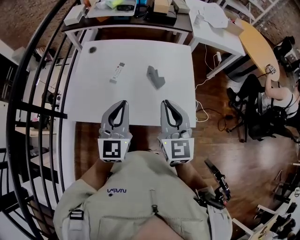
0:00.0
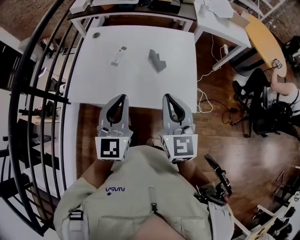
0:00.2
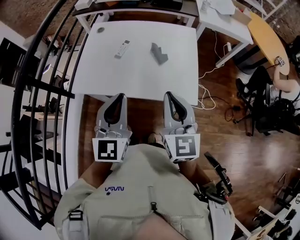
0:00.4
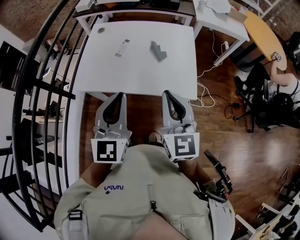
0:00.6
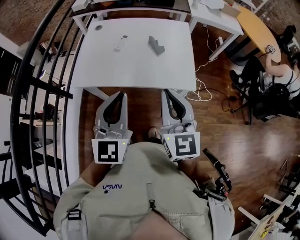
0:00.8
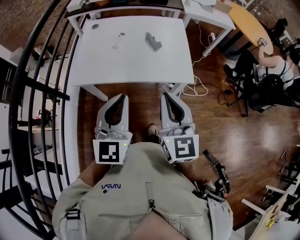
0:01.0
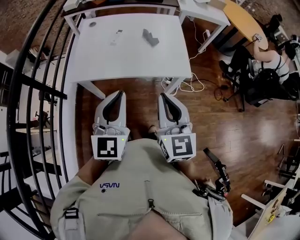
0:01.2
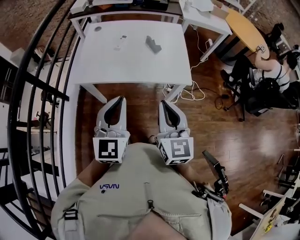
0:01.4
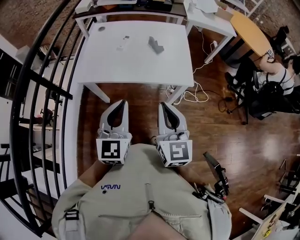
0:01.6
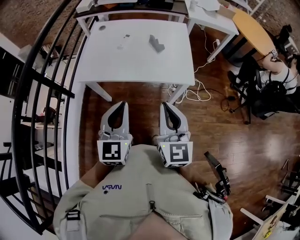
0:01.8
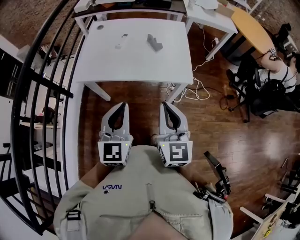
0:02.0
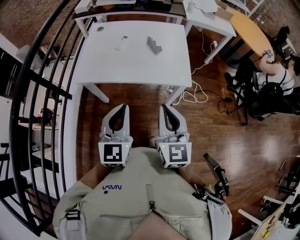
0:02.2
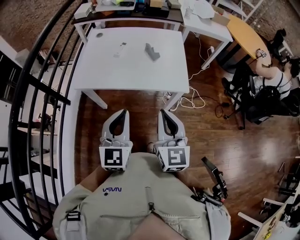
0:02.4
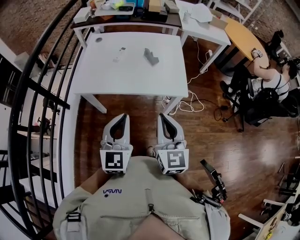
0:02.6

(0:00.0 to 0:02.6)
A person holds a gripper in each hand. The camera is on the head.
0:00.0 - 0:01.2: Both grippers move backward, approximately 25 cm.
0:01.2 - 0:02.6: The left gripper ends up some 5 cm from where it was.

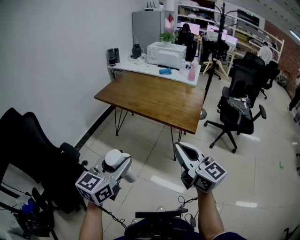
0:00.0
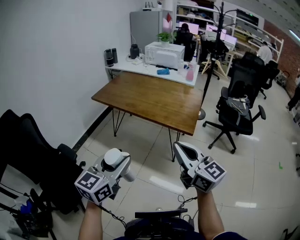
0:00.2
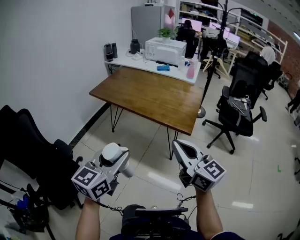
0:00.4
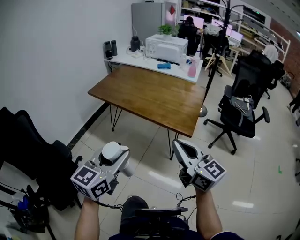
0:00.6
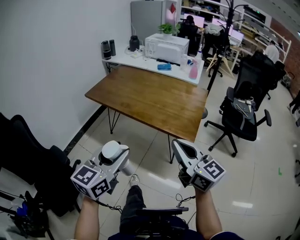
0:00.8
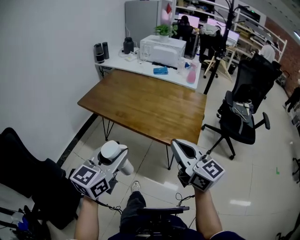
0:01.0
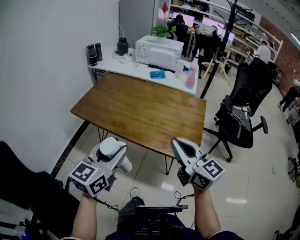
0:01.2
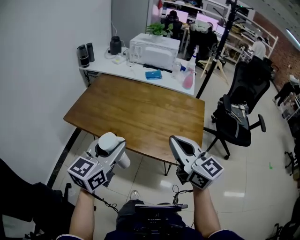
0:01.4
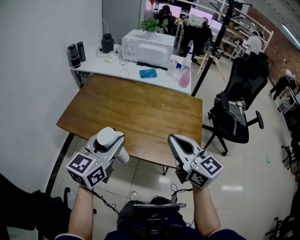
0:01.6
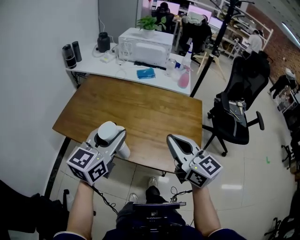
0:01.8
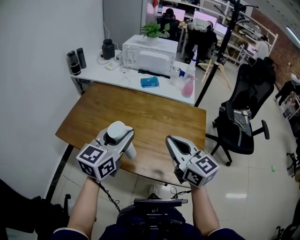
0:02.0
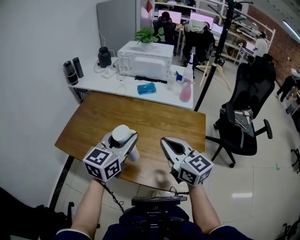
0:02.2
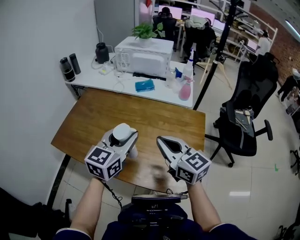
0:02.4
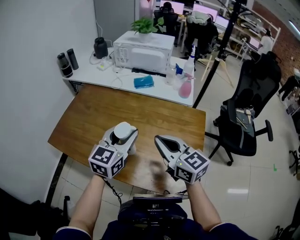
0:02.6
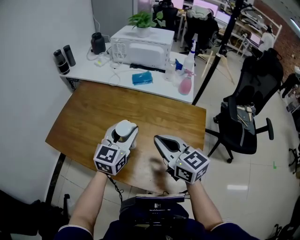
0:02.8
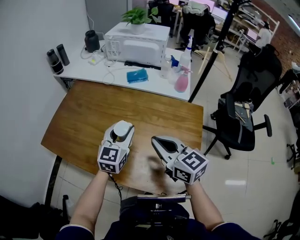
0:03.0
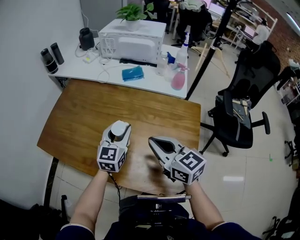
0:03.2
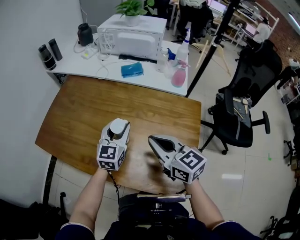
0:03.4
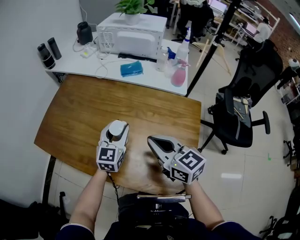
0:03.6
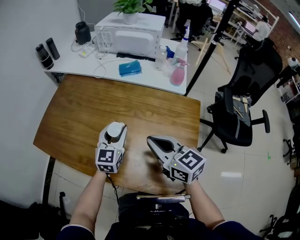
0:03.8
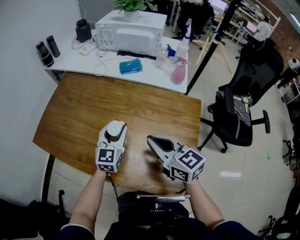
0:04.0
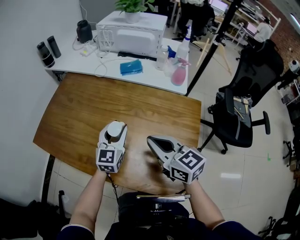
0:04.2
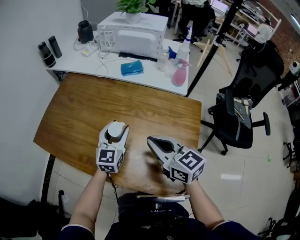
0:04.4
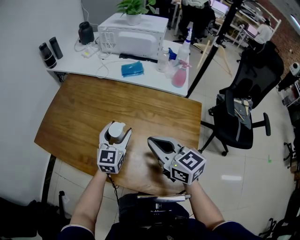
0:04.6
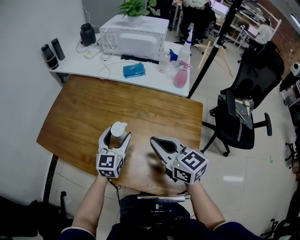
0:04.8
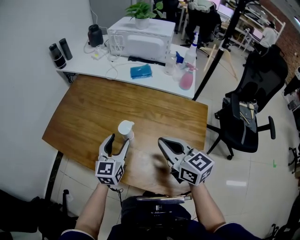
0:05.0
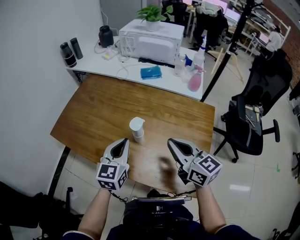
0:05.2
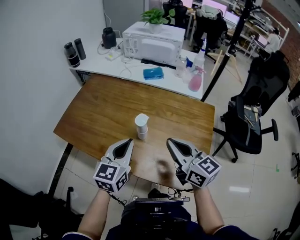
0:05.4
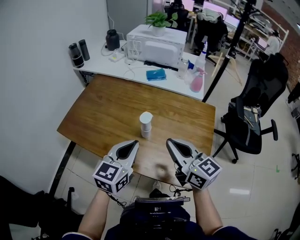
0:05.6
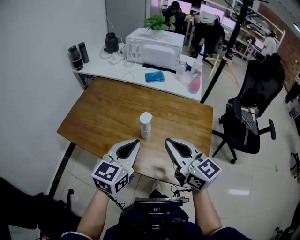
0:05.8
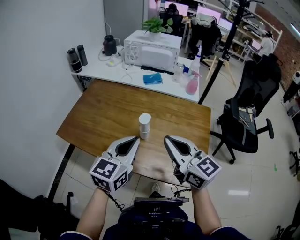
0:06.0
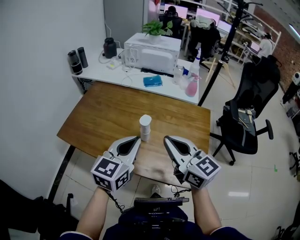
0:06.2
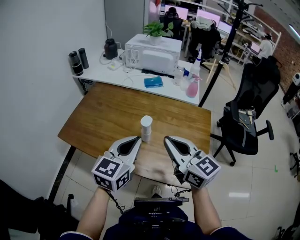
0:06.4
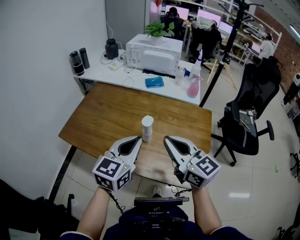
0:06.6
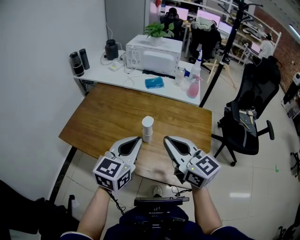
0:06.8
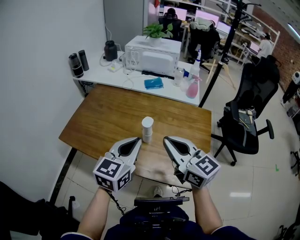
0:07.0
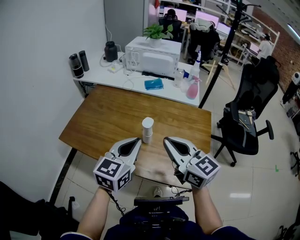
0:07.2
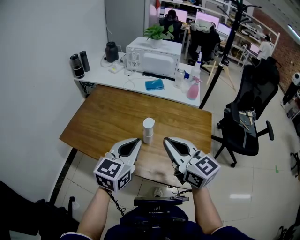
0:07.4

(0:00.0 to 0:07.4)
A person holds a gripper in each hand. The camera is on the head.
0:00.0 - 0:01.4: Both grippers move forward, some 35 cm.
0:01.4 - 0:03.0: The left gripper travels forward, to the right and downward by about 35 cm; the right gripper heads forward and downward, covering approximately 25 cm.
0:03.0 - 0:04.4: The left gripper travels downward by approximately 5 cm.
0:04.4 - 0:06.0: The left gripper moves backward, upward and to the left, roughly 25 cm, and closes; the right gripper shifts some 15 cm upward, backward and to the left.
0:06.0 - 0:07.4: The grippers stay close to where they were, moving slightly.

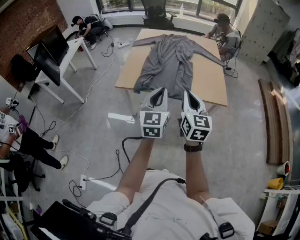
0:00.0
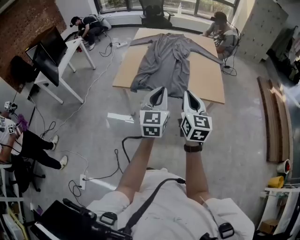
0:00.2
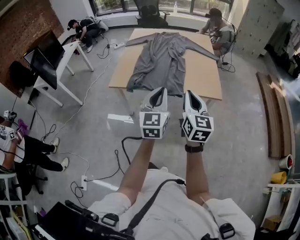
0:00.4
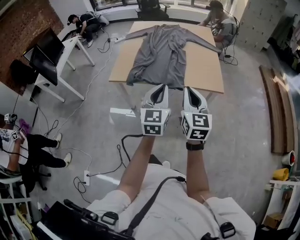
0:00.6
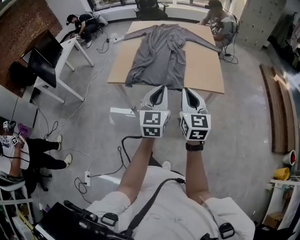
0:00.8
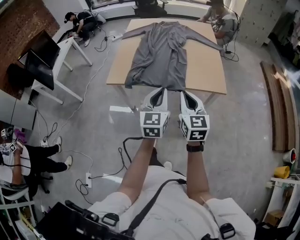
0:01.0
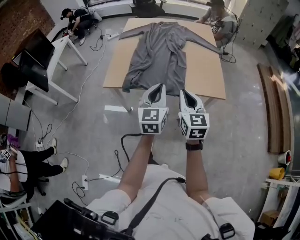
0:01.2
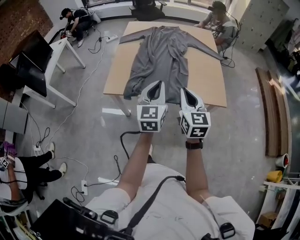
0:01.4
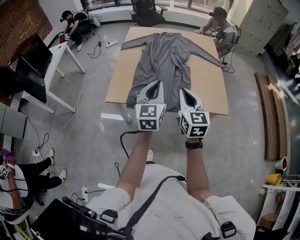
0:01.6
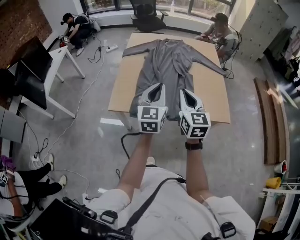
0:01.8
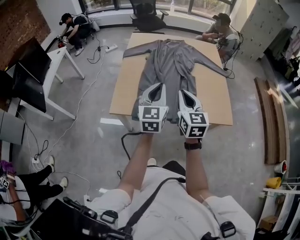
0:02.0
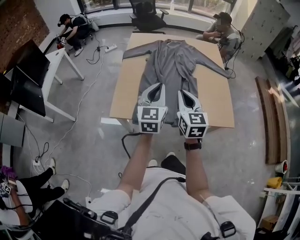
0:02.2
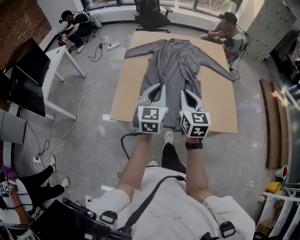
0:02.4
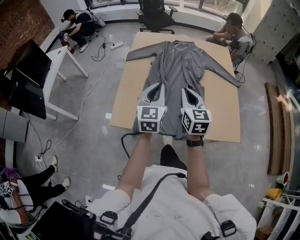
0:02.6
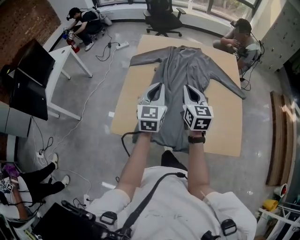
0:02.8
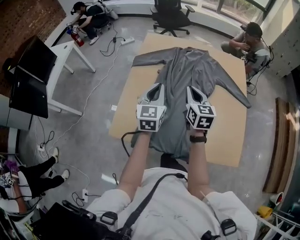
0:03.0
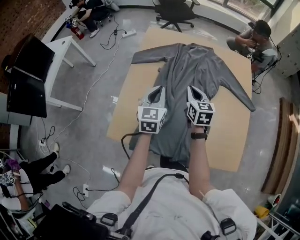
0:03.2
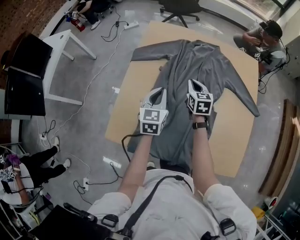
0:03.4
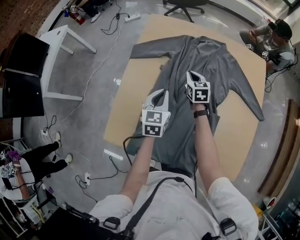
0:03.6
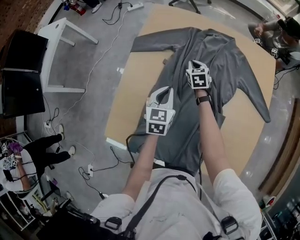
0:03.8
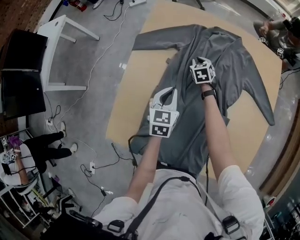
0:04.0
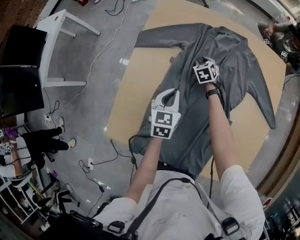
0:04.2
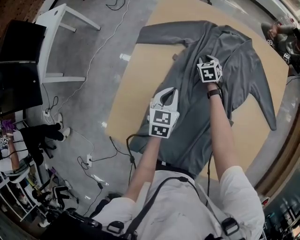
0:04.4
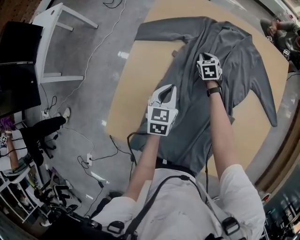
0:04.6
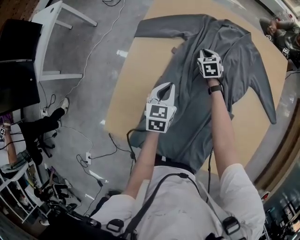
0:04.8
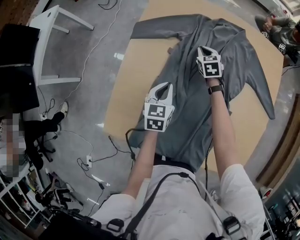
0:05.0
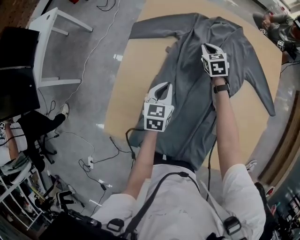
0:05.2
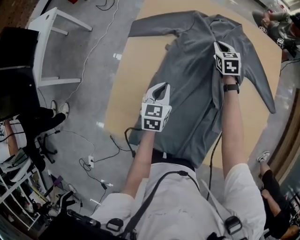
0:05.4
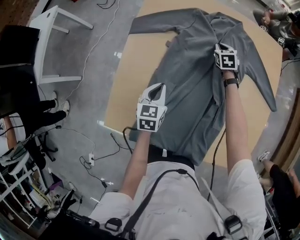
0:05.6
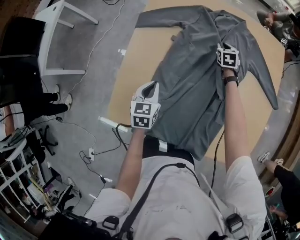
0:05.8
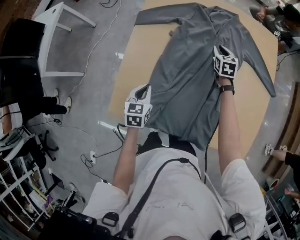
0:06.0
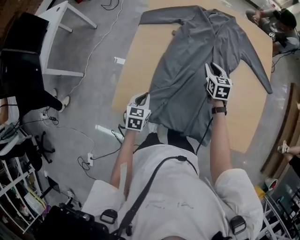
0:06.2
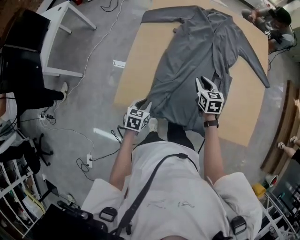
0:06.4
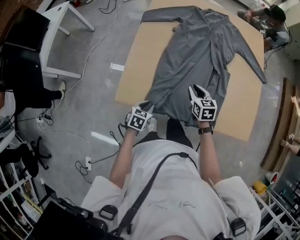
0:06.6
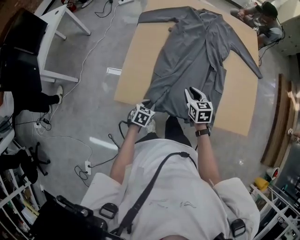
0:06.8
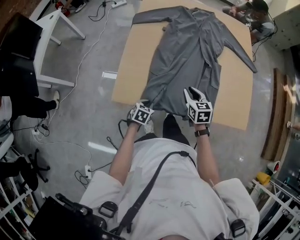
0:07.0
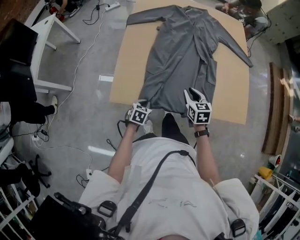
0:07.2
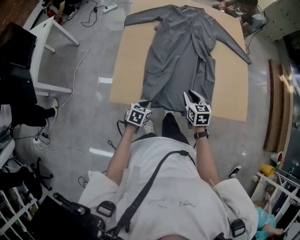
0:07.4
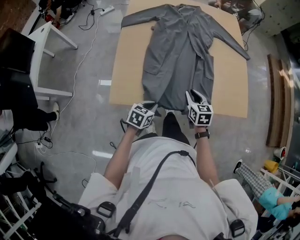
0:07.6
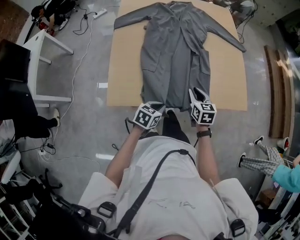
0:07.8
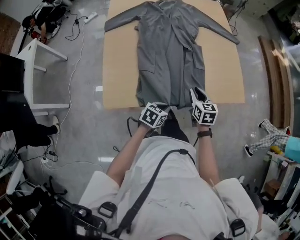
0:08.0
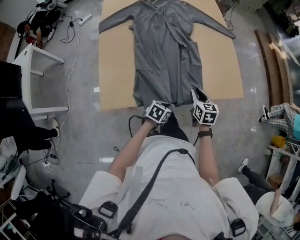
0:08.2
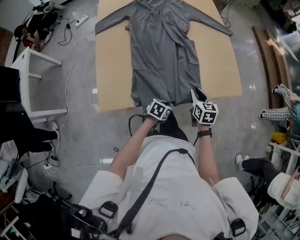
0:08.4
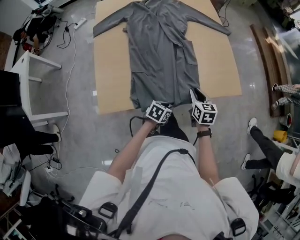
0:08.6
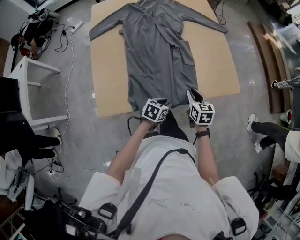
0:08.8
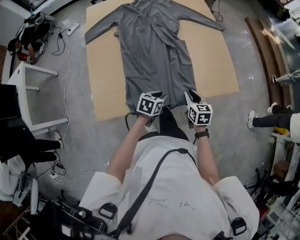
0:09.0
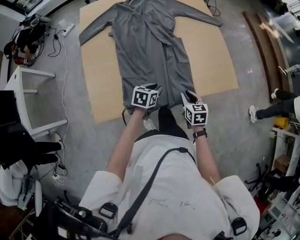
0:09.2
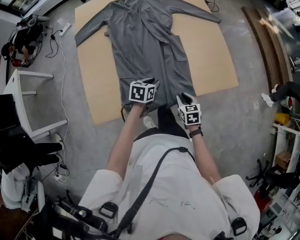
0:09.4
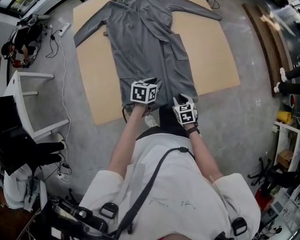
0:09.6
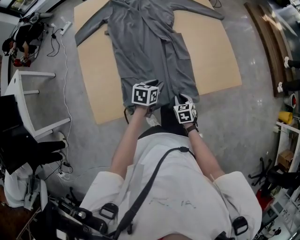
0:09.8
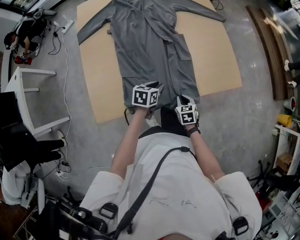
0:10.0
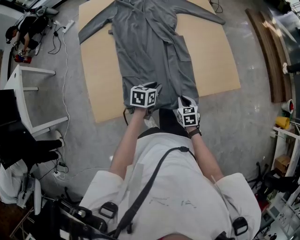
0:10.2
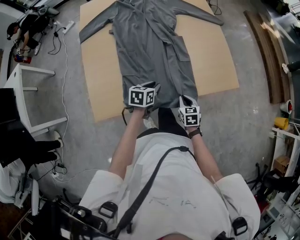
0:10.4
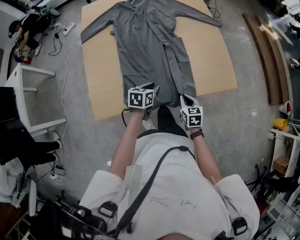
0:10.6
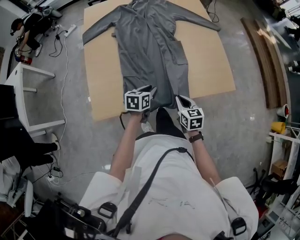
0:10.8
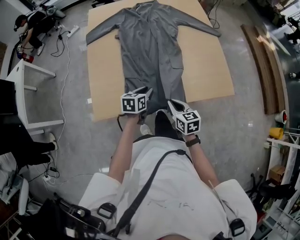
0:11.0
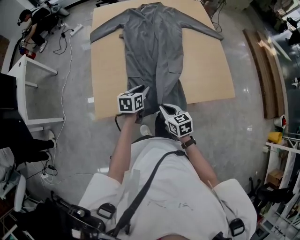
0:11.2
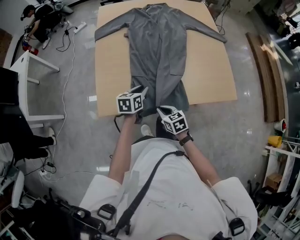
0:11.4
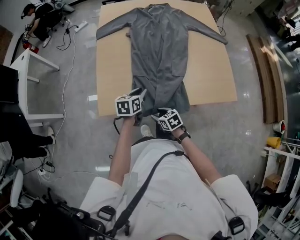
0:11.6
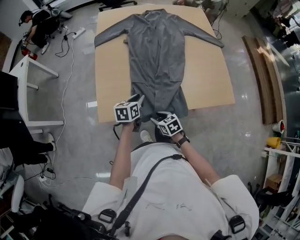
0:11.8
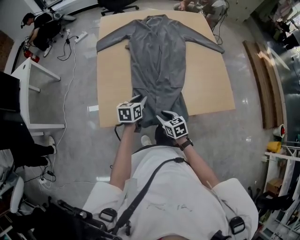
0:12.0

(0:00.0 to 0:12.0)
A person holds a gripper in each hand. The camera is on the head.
0:00.0 - 0:01.6: Both grippers travel together forward, about 15 cm.
0:01.6 - 0:03.0: Both grippers move forward, roughly 35 cm.
0:03.0 - 0:04.4: The left gripper goes roughly 25 cm downward and forward, and swivels about 30 degrees, while the right gripper goes approximately 40 cm downward and forward, and angles its fingers downward, by approximately 30 degrees.
0:04.4 - 0:06.0: The right gripper goes up and down, roughly 10 cm each way, reversing 2 times, and changes its angle by roughly 20 degrees, while the left gripper moves backward and to the left, some 20 cm.
0:06.0 - 0:07.6: The left gripper travels downward and back again, about 10 cm each way, and turns by about 40 degrees. Meanwhile the right gripper changes place by approximately 40 cm.
0:07.6 - 0:09.0: The left gripper travels forward and to the right by about 15 cm, and opens; the right gripper travels to the right by approximately 10 cm.
0:09.0 - 0:10.4: The right gripper heads downward, covering about 10 cm, while the left gripper ends up approximately 5 cm from where it was.
0:10.4 - 0:12.0: The right gripper goes up and down, some 10 cm each way, reversing 2 times, and changes its angle by approximately 20 degrees. Meanwhile the left gripper shifts by roughly 15 cm.

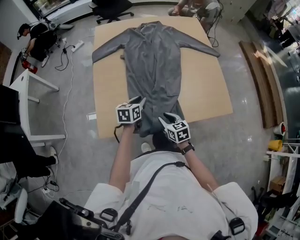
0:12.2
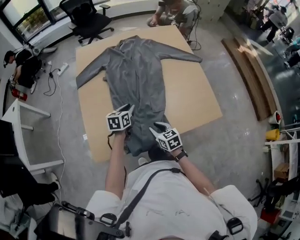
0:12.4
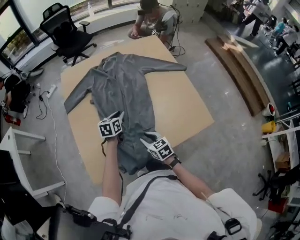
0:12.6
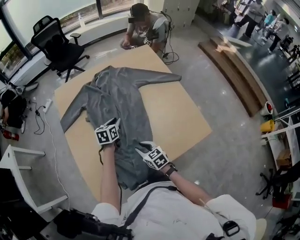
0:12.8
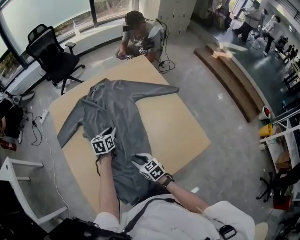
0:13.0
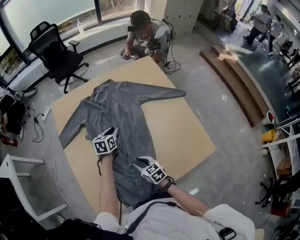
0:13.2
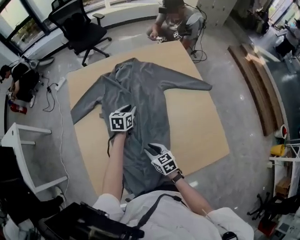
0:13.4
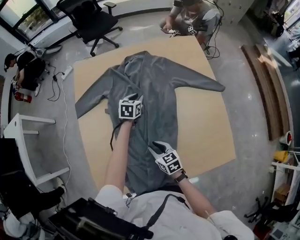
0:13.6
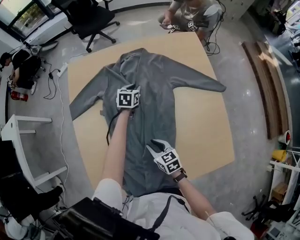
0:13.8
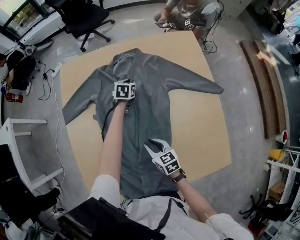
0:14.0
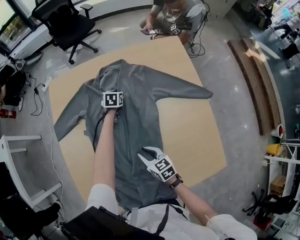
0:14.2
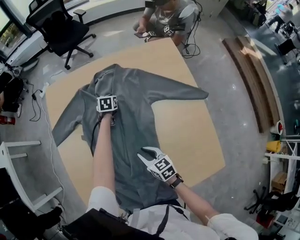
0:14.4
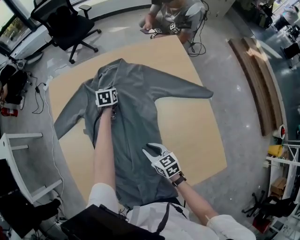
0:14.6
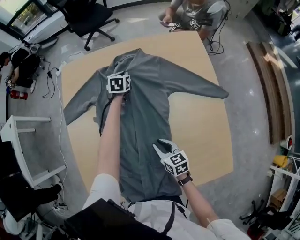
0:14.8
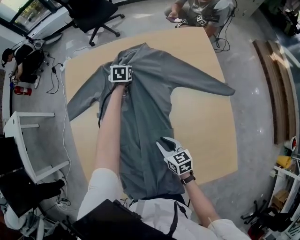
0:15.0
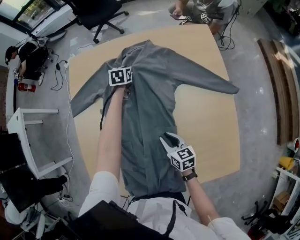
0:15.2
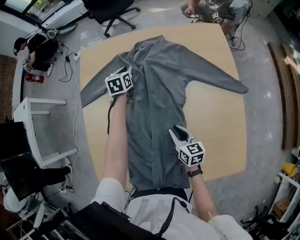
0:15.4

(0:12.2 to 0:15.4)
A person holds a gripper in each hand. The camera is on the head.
0:12.2 - 0:13.8: The right gripper moves forward, roughly 20 cm. The left gripper is displaced forward by approximately 40 cm.
0:13.8 - 0:15.4: The left gripper shifts about 10 cm to the left and forward, rotates roughly 20 degrees, and closes and opens again, while the right gripper moves to the right, about 10 cm.
